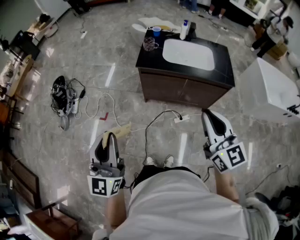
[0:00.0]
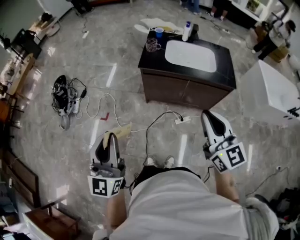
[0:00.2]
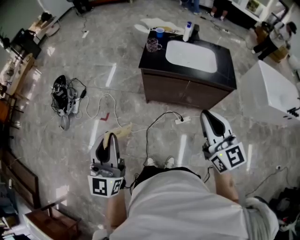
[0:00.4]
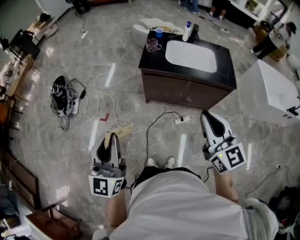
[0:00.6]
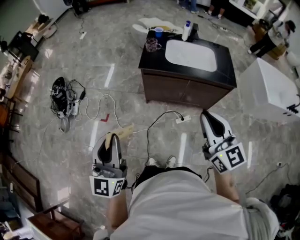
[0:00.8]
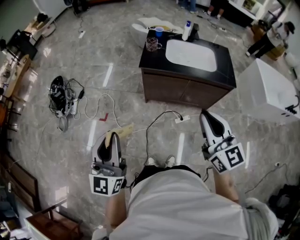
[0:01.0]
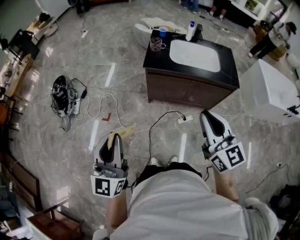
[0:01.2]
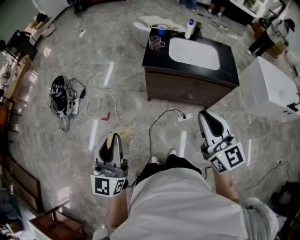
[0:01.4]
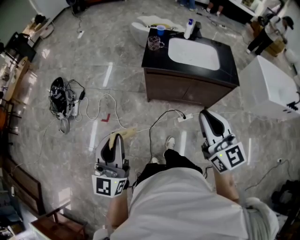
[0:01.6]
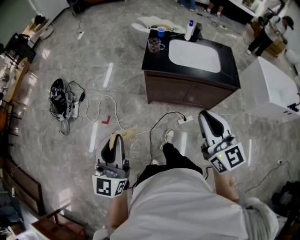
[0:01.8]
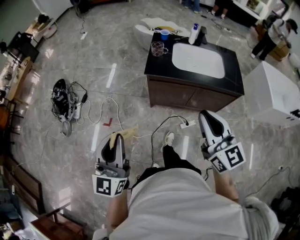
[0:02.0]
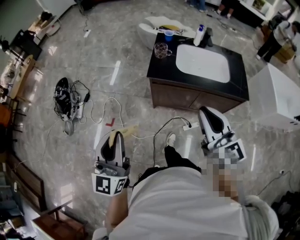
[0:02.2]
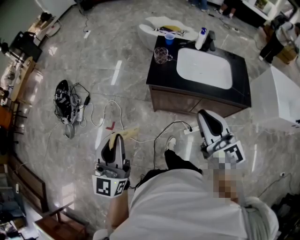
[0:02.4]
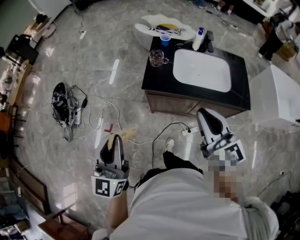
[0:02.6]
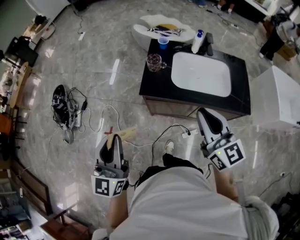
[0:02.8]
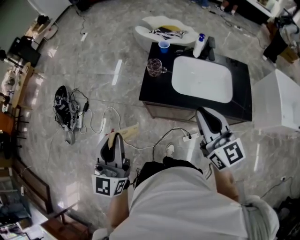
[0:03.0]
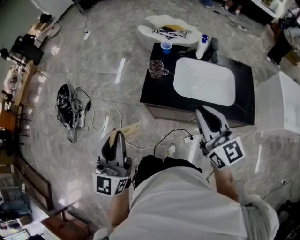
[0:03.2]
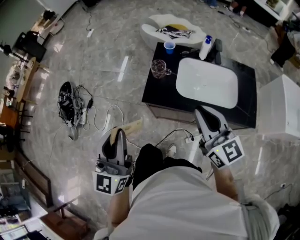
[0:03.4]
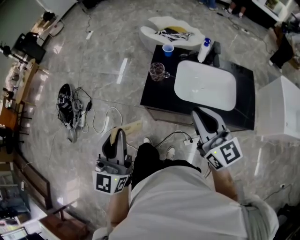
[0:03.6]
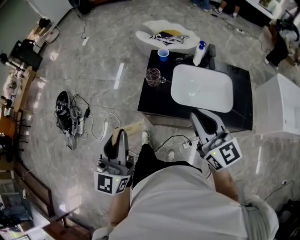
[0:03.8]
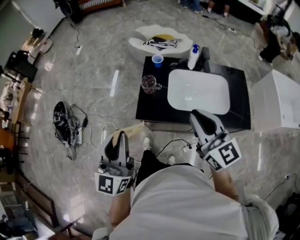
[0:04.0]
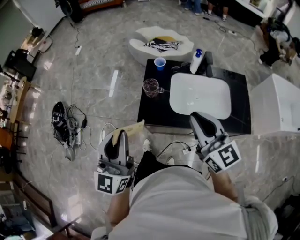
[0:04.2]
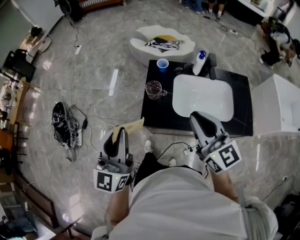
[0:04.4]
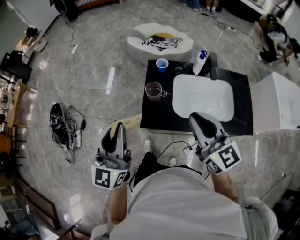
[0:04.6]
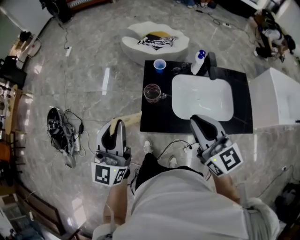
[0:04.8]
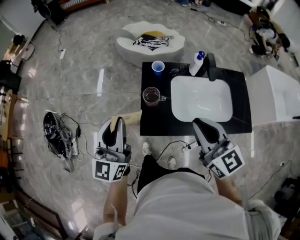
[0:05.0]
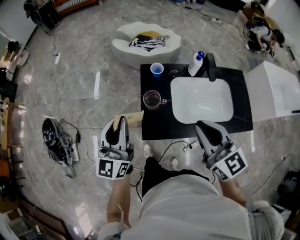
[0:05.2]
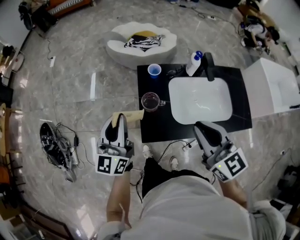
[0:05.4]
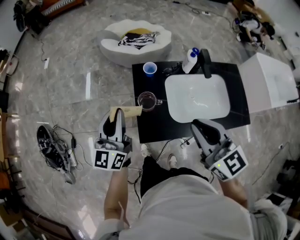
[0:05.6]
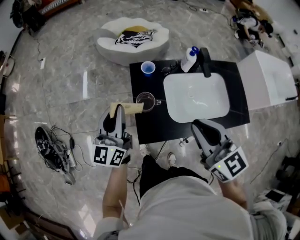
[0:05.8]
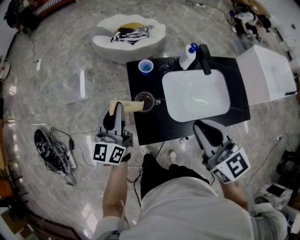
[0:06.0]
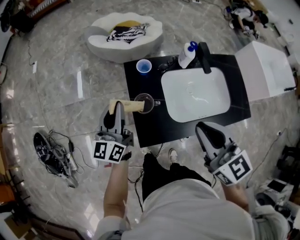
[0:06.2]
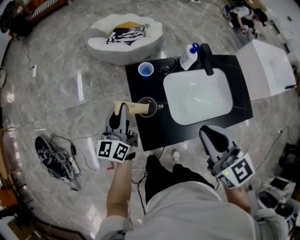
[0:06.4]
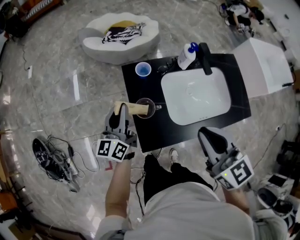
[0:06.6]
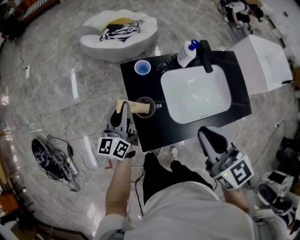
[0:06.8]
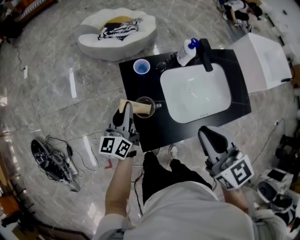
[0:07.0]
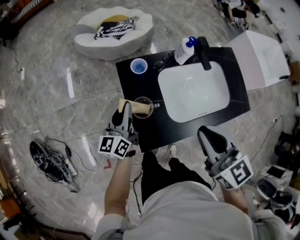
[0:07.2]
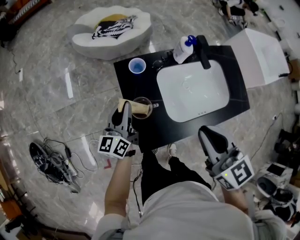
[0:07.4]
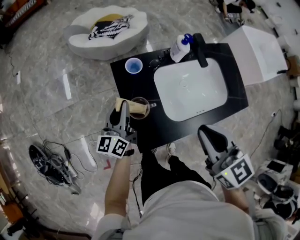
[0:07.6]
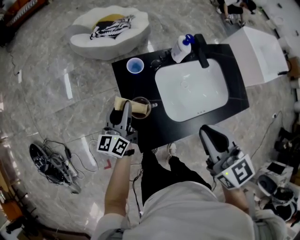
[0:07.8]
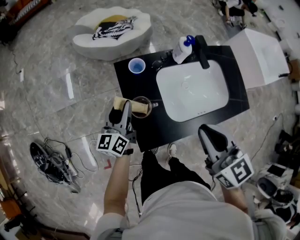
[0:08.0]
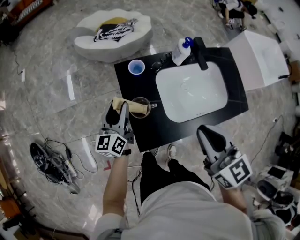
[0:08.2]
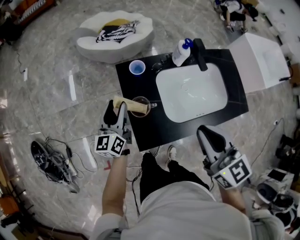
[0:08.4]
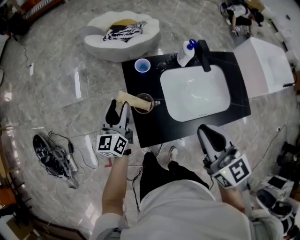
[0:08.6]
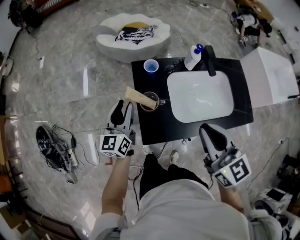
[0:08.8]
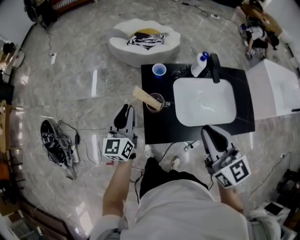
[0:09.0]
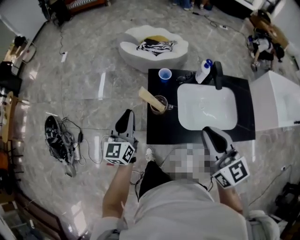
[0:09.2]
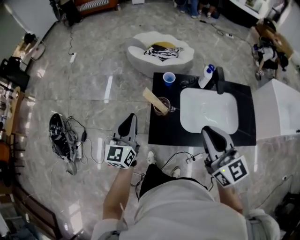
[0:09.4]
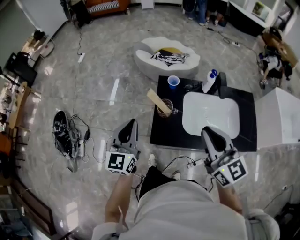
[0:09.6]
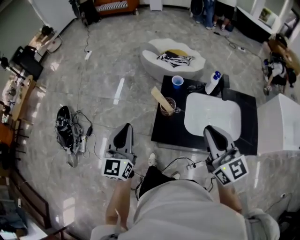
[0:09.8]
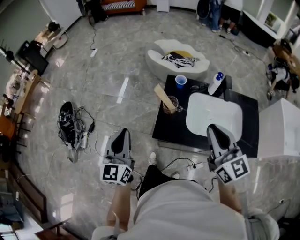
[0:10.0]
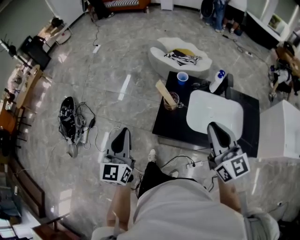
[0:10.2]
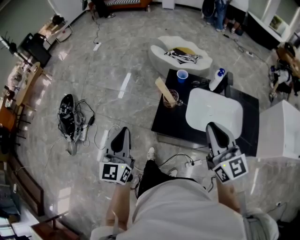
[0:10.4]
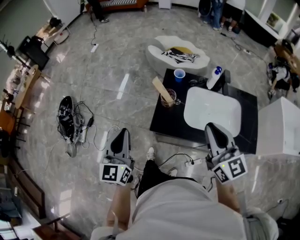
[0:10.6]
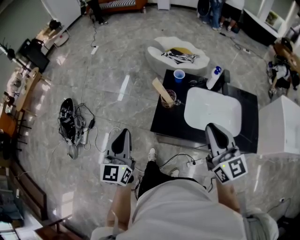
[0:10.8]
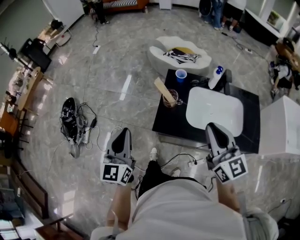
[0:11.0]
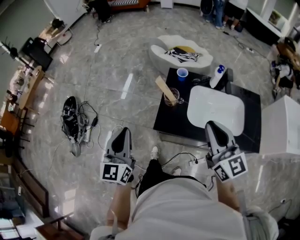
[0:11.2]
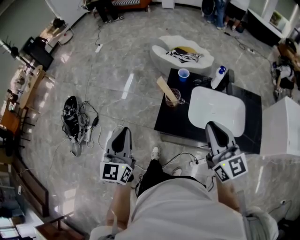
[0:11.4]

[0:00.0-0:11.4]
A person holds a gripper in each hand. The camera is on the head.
0:00.0 to 0:01.4: Both grippers travel together to the left, some 5 cm.
0:01.4 to 0:02.8: Both grippers travel together forward, approximately 25 cm.
0:02.8 to 0:04.2: The right gripper moves forward, some 10 cm, while the left gripper moves forward and to the right, approximately 15 cm.
0:04.2 to 0:05.6: The right gripper moves forward, about 10 cm. The left gripper heads forward, covering approximately 25 cm.
0:05.6 to 0:07.2: The right gripper ends up approximately 5 cm from where it was, while the left gripper is displaced downward and forward by about 20 cm, and rotates some 20 degrees.
0:07.2 to 0:08.6: The left gripper opens its fingers.
0:08.6 to 0:10.0: The right gripper travels upward and backward by roughly 10 cm, and rotates about 20 degrees; the left gripper travels backward and upward by approximately 30 cm, rotates roughly 30 degrees, and closes.
0:10.0 to 0:11.4: The grippers move only a little.

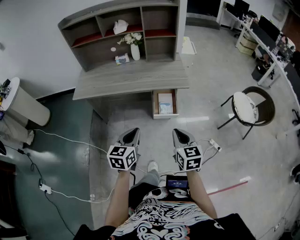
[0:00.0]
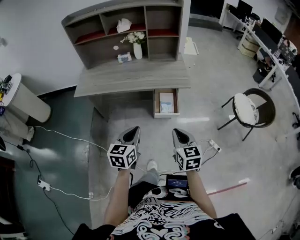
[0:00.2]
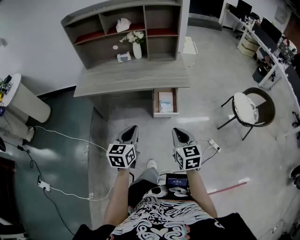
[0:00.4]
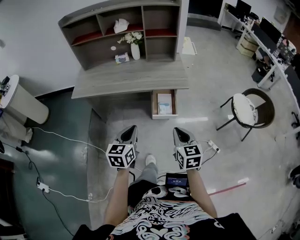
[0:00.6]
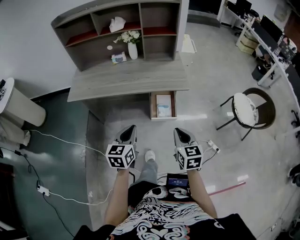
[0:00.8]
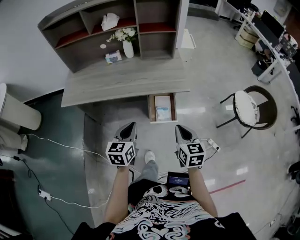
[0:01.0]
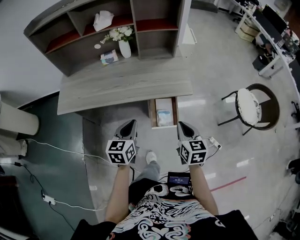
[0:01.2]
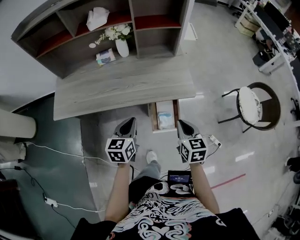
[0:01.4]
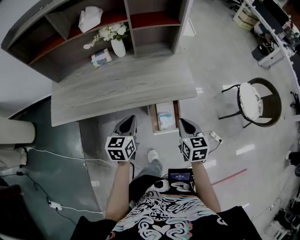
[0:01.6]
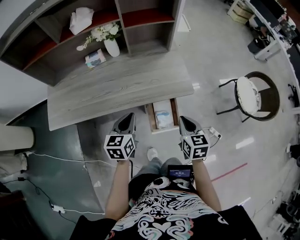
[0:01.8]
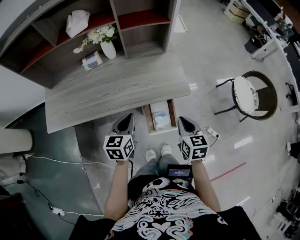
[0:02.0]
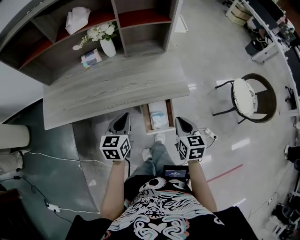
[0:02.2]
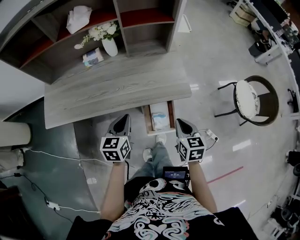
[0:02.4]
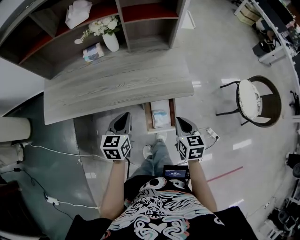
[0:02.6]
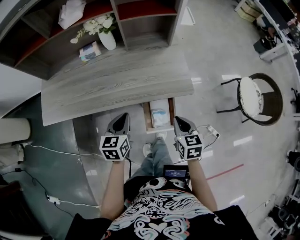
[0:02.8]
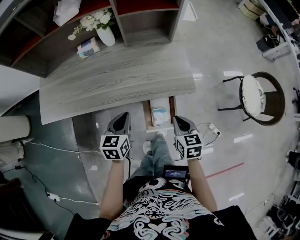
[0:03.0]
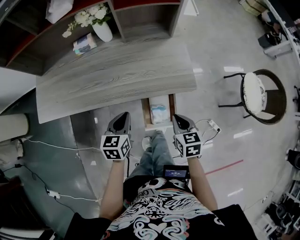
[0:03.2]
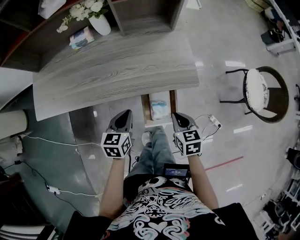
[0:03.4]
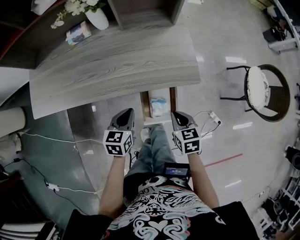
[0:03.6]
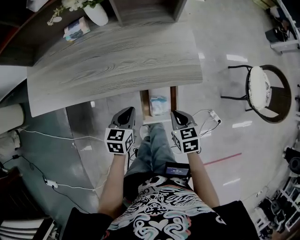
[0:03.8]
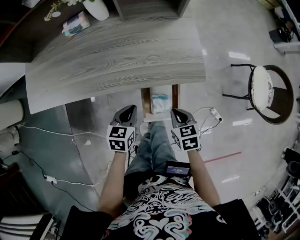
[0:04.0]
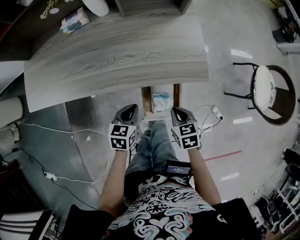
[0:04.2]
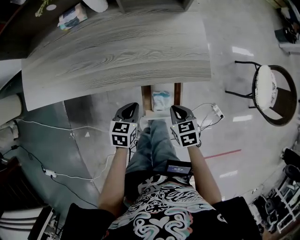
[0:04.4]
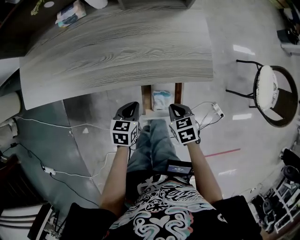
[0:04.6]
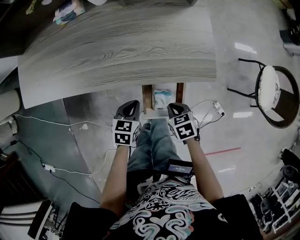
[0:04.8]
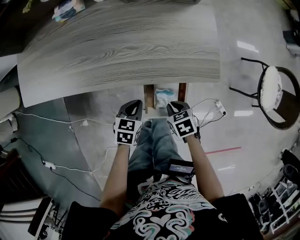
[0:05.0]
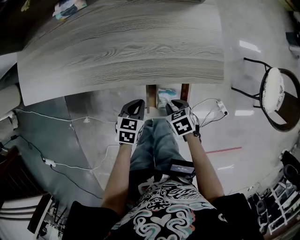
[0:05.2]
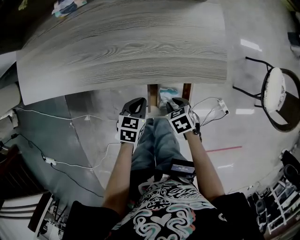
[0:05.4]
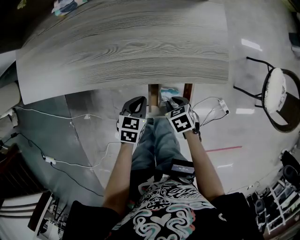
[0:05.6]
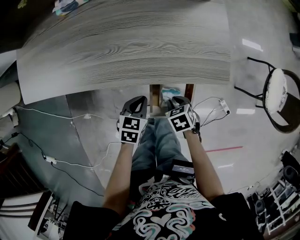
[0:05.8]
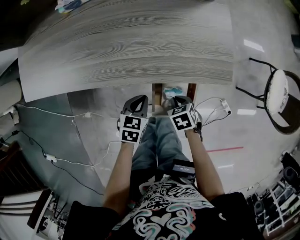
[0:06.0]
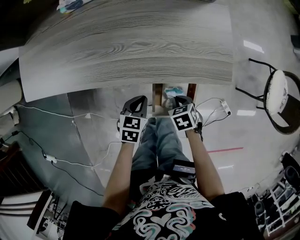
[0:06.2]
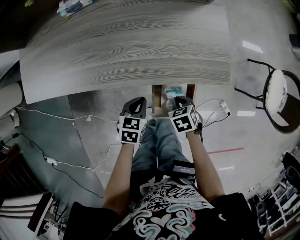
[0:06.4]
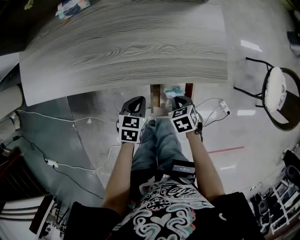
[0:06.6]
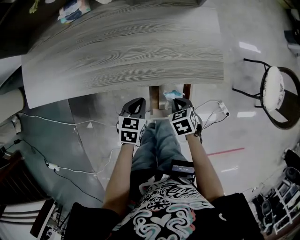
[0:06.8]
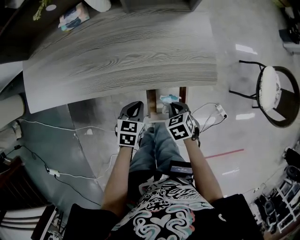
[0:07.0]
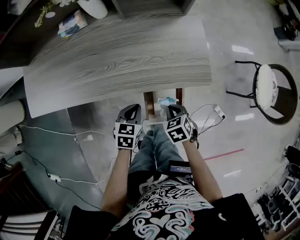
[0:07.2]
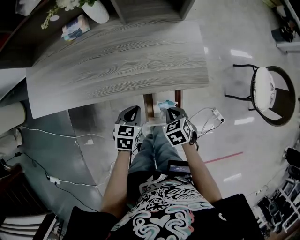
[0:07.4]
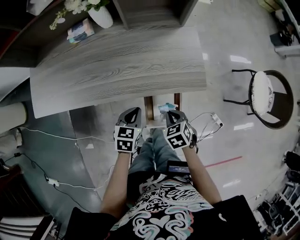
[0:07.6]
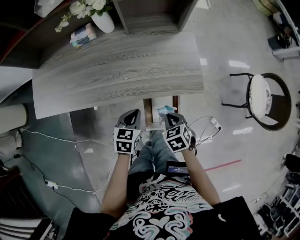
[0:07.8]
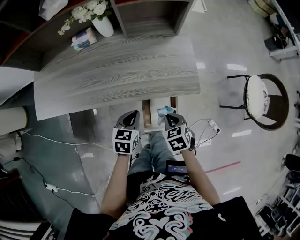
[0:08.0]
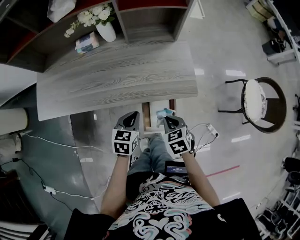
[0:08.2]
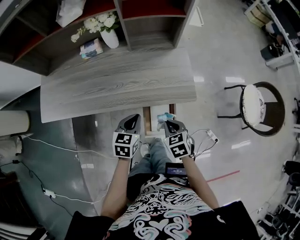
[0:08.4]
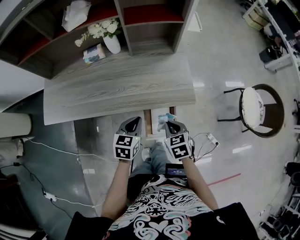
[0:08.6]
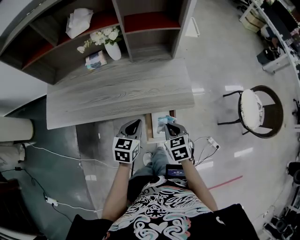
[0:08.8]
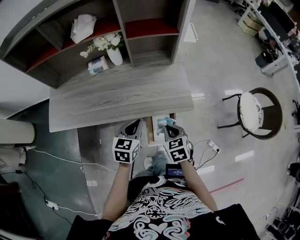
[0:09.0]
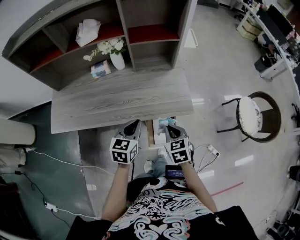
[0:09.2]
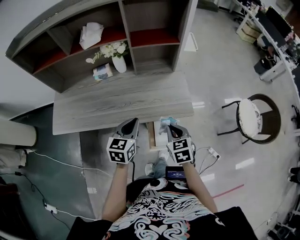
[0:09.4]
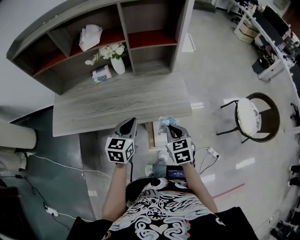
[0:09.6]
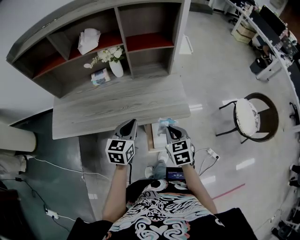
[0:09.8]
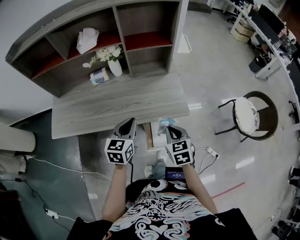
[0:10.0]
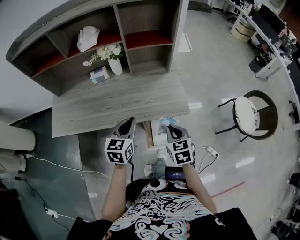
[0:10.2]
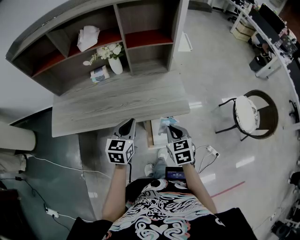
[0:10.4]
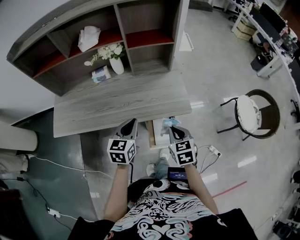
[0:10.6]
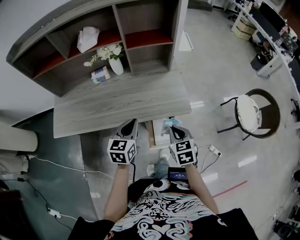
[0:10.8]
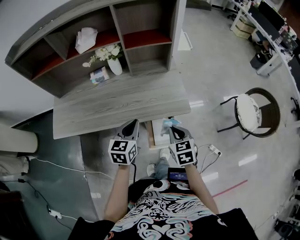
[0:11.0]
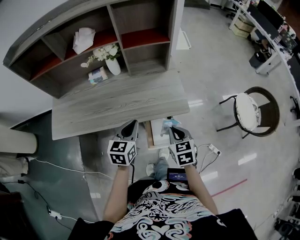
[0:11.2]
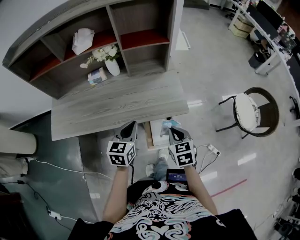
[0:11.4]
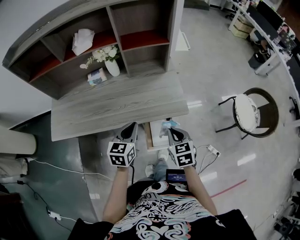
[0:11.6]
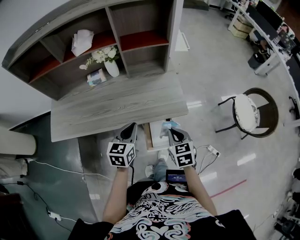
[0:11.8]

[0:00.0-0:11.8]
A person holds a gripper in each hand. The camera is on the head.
0:00.0 to 0:01.4: Both grippers move forward, roughly 25 cm.
0:01.4 to 0:03.0: The left gripper moves downward and forward, roughly 10 cm. The right gripper heads downward, covering some 10 cm.
0:03.0 to 0:04.4: The two grippers go about 15 cm downward. The right gripper rotates some 20 degrees.
0:04.4 to 0:06.0: The right gripper moves downward, approximately 10 cm.
0:06.0 to 0:07.4: Both grippers travel together upward, roughly 5 cm.
0:07.4 to 0:08.8: The grippers both shift upward by roughly 15 cm.
0:08.8 to 0:10.4: Both grippers move upward, approximately 10 cm.
0:10.4 to 0:11.8: The grippers move only a little.

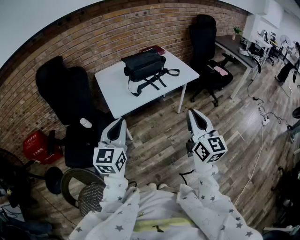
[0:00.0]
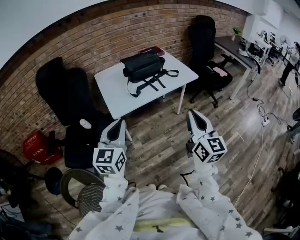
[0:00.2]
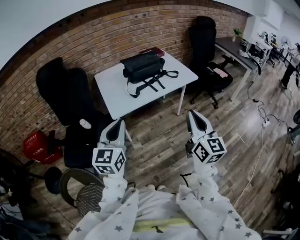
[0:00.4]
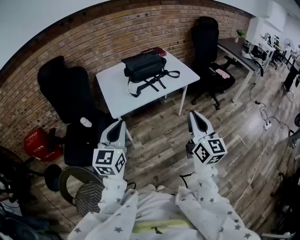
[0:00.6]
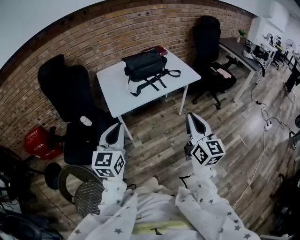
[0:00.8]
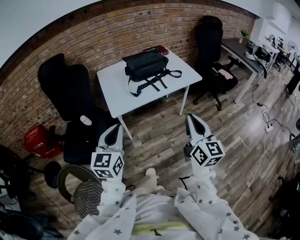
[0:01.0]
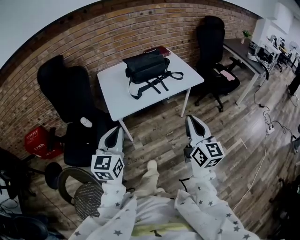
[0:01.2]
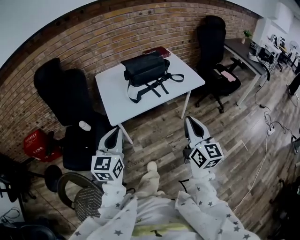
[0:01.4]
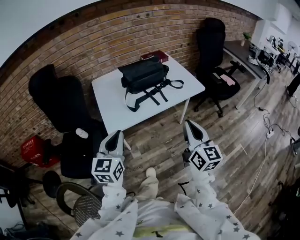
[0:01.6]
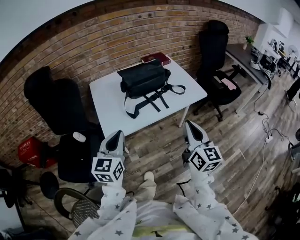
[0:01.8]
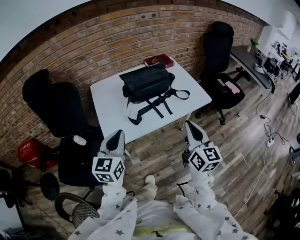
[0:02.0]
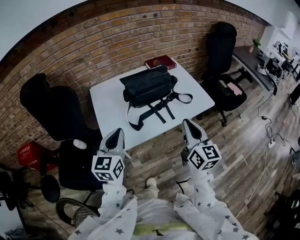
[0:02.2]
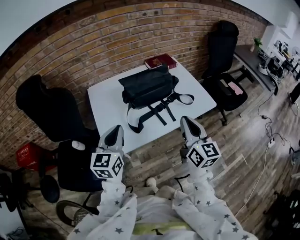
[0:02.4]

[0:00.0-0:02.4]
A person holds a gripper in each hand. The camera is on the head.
0:00.0 to 0:01.2: The right gripper moves approximately 5 cm.
0:01.2 to 0:02.4: The grippers both shift forward by some 30 cm.
